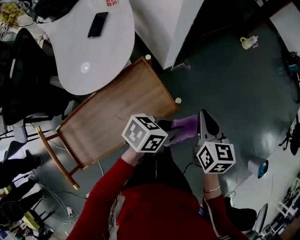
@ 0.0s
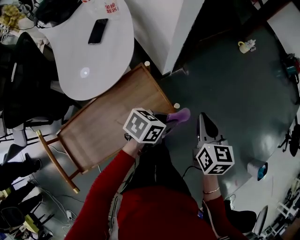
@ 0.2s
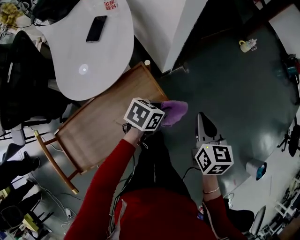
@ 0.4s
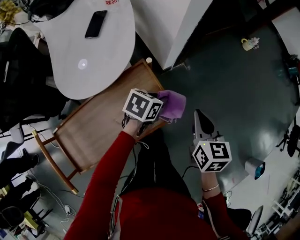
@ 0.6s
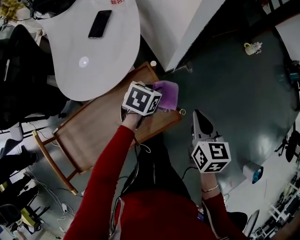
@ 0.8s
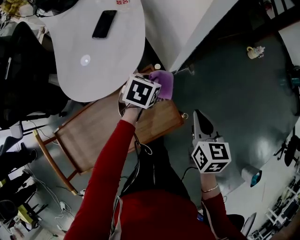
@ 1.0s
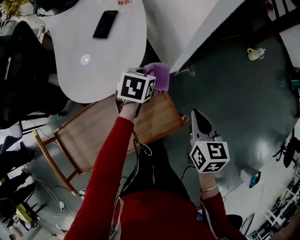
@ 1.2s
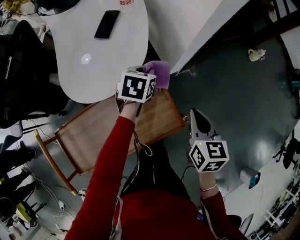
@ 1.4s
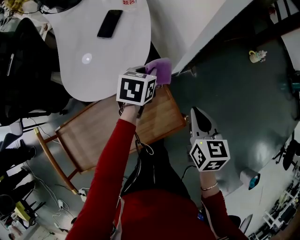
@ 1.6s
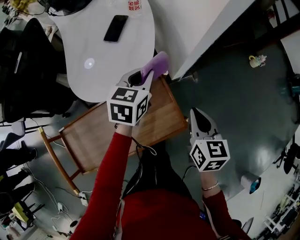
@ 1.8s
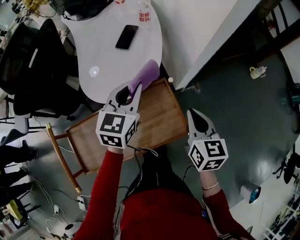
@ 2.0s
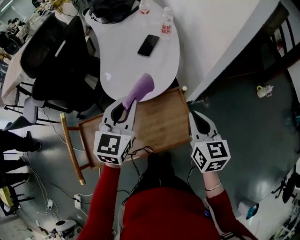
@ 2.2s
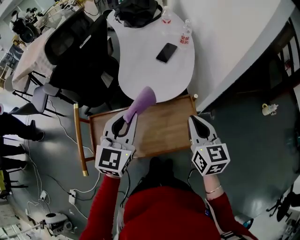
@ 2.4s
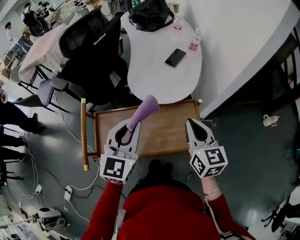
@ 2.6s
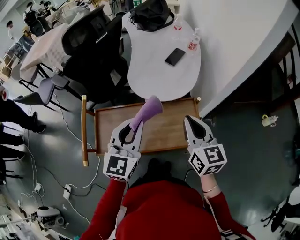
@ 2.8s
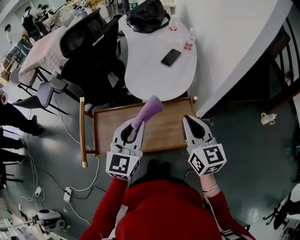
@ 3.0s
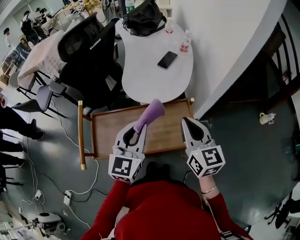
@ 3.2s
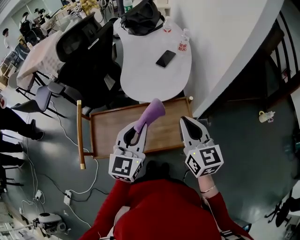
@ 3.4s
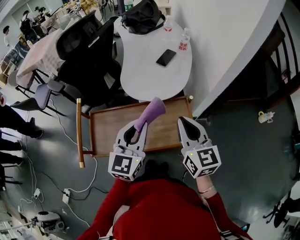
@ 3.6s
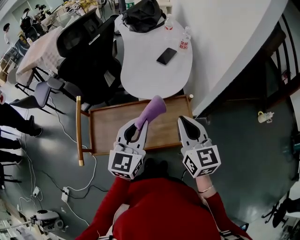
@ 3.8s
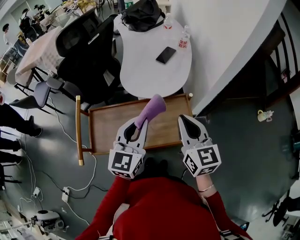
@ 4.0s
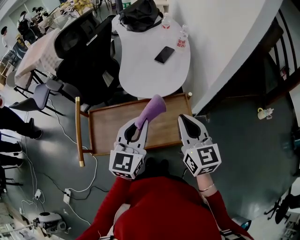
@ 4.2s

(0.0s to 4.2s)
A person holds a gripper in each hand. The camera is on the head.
0.0s - 1.4s: The right gripper moves some 10 cm. Meanwhile the left gripper changes place by about 30 cm, and swivels approximately 50 degrees.
1.4s - 2.8s: The left gripper ends up approximately 35 cm from where it was, and points its fingers about 50 degrees further upward. Meanwhile the right gripper shifts by some 20 cm, and turns by approximately 40 degrees.
2.8s - 4.2s: There are only small adjustments of the grippers.

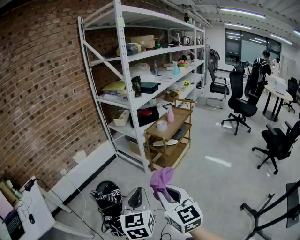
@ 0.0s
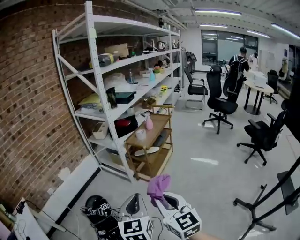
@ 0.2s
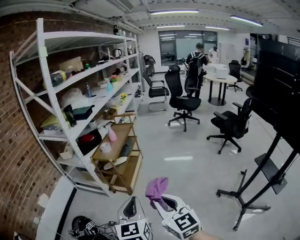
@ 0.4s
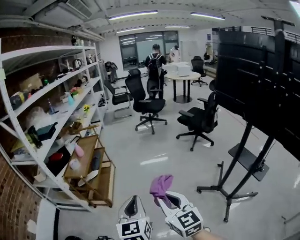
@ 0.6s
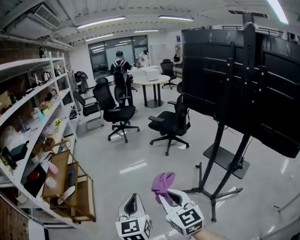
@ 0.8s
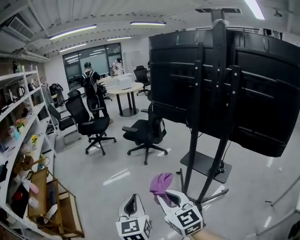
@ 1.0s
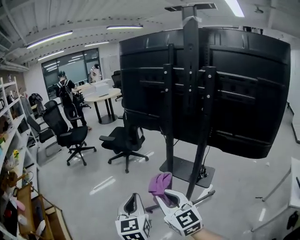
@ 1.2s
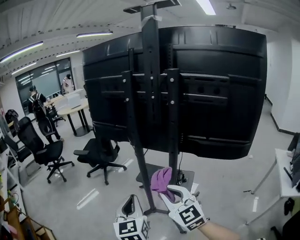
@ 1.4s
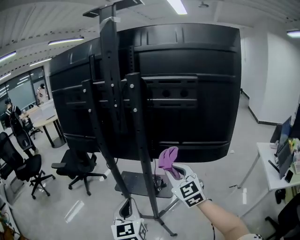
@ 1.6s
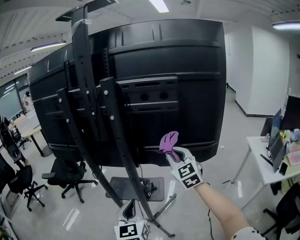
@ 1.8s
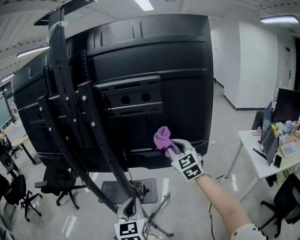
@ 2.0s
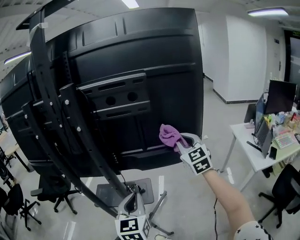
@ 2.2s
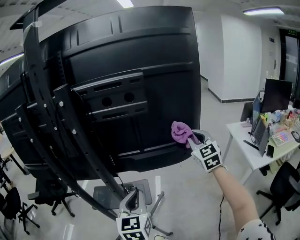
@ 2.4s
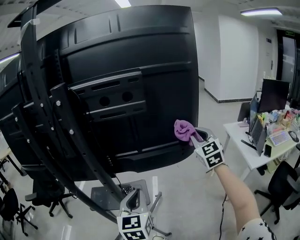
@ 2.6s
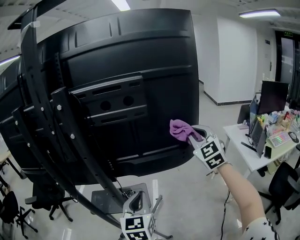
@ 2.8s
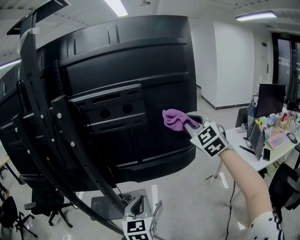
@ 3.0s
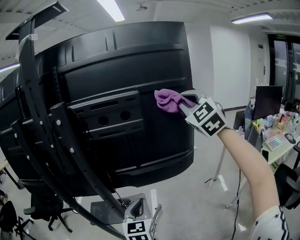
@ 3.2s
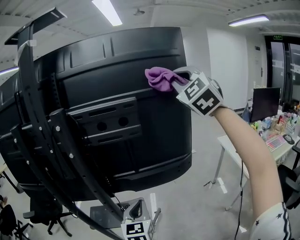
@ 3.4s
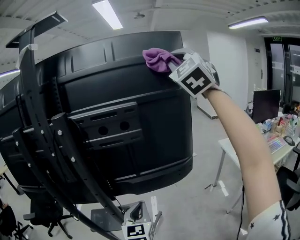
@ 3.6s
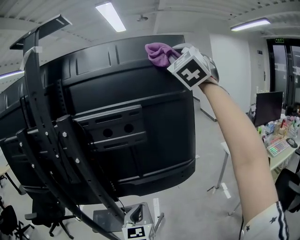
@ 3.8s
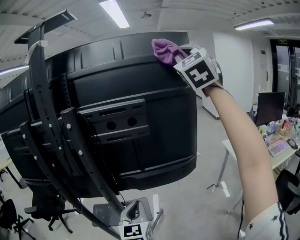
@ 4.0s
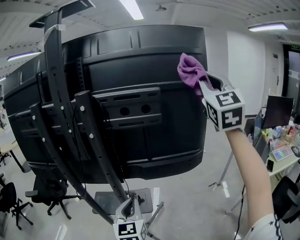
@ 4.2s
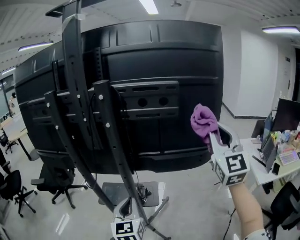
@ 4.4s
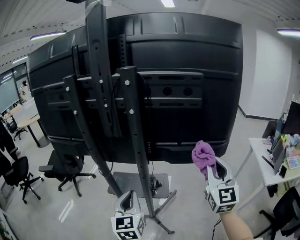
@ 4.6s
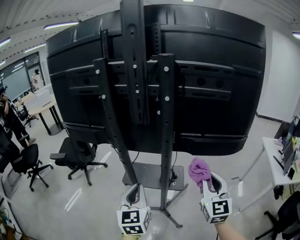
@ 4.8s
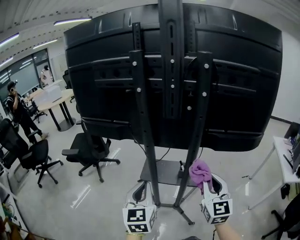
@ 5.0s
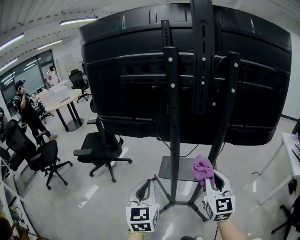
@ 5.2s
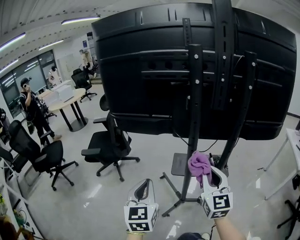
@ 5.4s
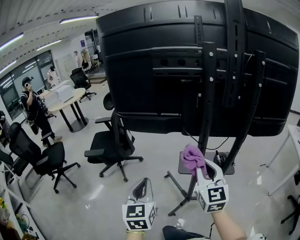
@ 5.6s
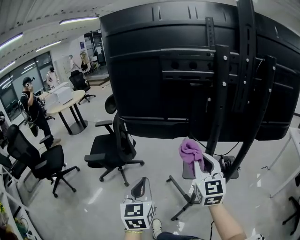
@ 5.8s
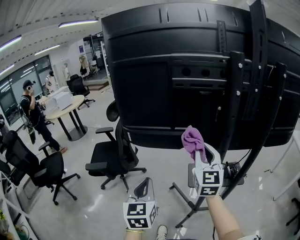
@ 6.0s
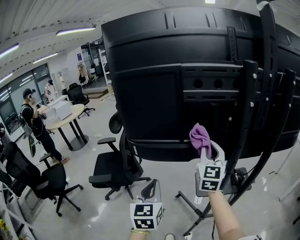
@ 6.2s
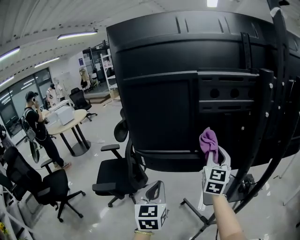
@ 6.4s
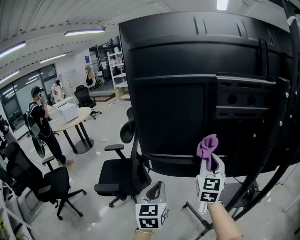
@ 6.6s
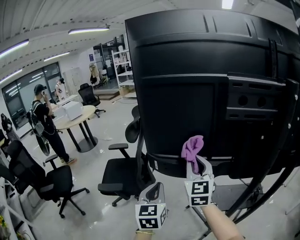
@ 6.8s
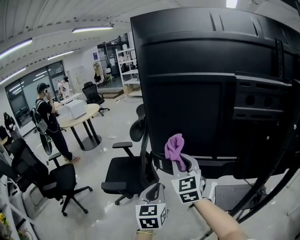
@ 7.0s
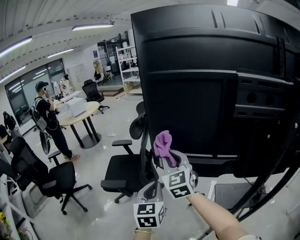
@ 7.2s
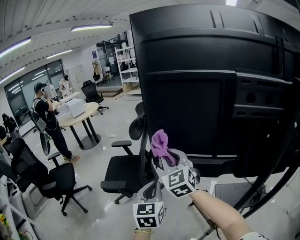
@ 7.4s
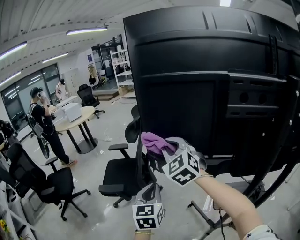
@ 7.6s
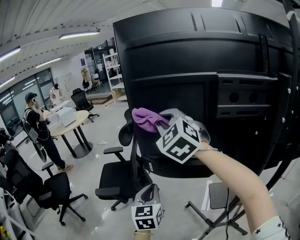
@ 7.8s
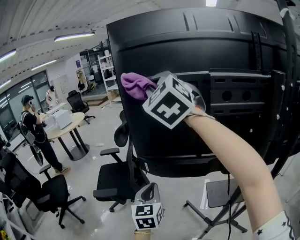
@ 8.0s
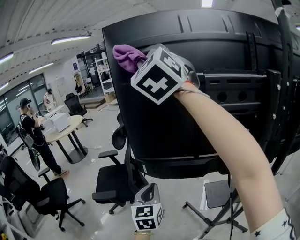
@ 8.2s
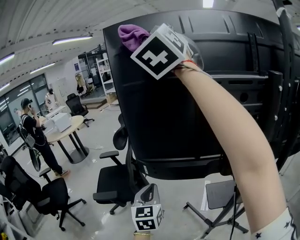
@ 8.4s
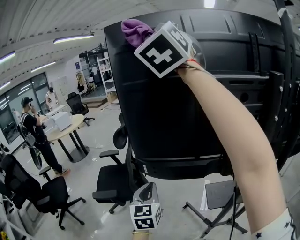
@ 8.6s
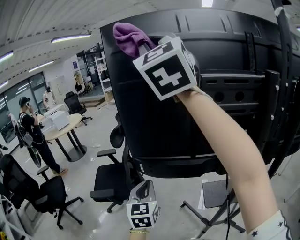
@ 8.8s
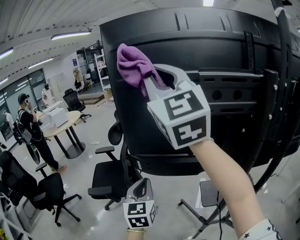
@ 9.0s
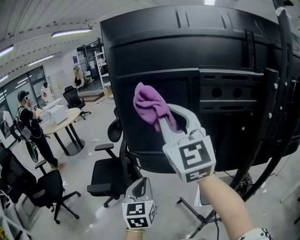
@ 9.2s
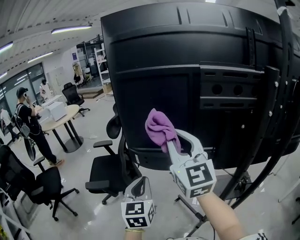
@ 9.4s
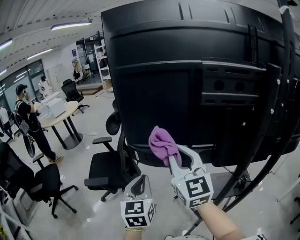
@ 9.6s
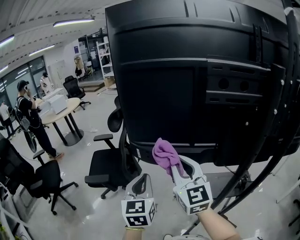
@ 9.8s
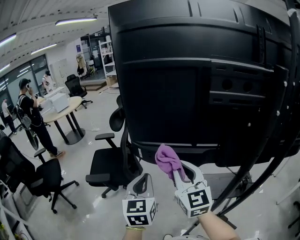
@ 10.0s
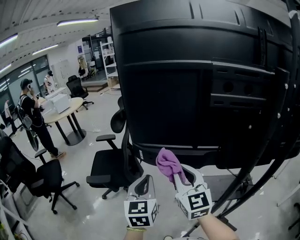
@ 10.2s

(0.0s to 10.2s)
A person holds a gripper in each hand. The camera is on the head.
0.0s - 1.4s: The pair of grippers is taken approximately 90 cm. The right gripper swivels roughly 80 degrees, while the left gripper turns by roughly 80 degrees.
1.4s - 3.0s: The left gripper changes place by roughly 35 cm, and changes its angle by approximately 40 degrees; the right gripper ends up about 50 cm from where it was, and changes its angle by about 50 degrees.
3.0s - 4.4s: The left gripper heads to the left and backward, covering approximately 15 cm. The right gripper goes about 10 cm backward, moves about 30 cm upward and comes back, and turns by some 30 degrees.
4.4s - 5.8s: Both grippers are carried to the left, roughly 60 cm. The right gripper swivels some 20 degrees.
5.8s - 7.2s: The right gripper goes approximately 40 cm to the left and forward. The left gripper travels forward and to the left by some 25 cm.
7.2s - 8.8s: The left gripper ends up about 5 cm from where it was; the right gripper is displaced upward by approximately 40 cm, and swivels some 30 degrees.
8.8s - 10.2s: The right gripper travels downward by about 40 cm, and turns by approximately 30 degrees.

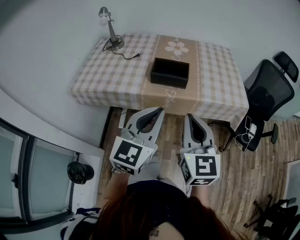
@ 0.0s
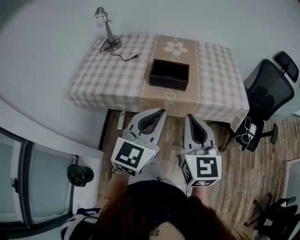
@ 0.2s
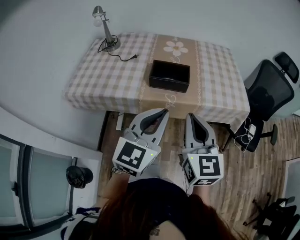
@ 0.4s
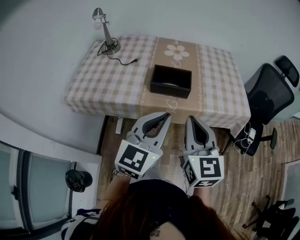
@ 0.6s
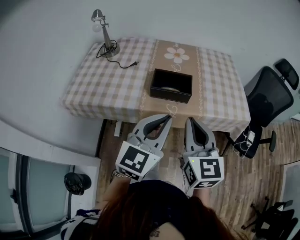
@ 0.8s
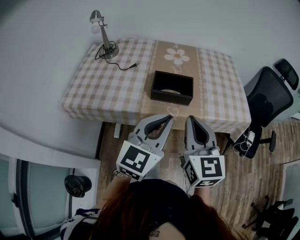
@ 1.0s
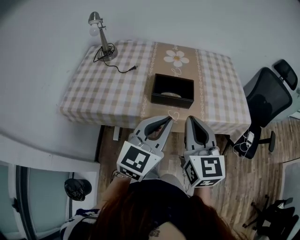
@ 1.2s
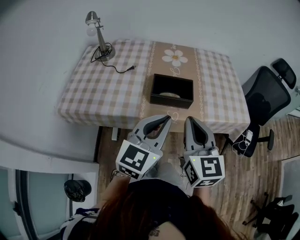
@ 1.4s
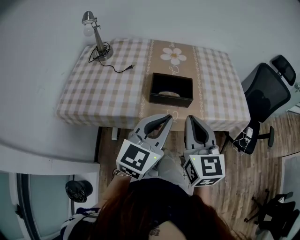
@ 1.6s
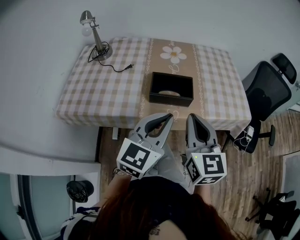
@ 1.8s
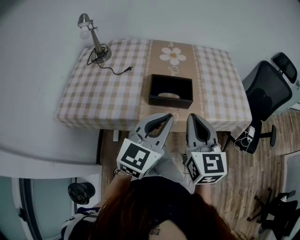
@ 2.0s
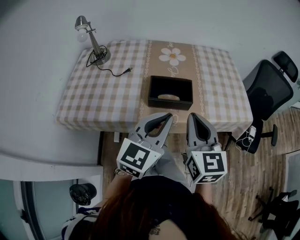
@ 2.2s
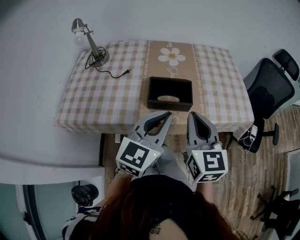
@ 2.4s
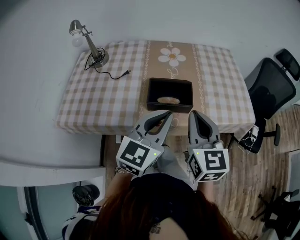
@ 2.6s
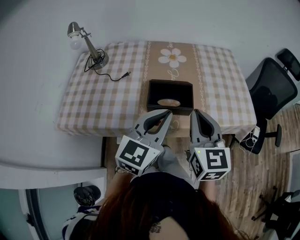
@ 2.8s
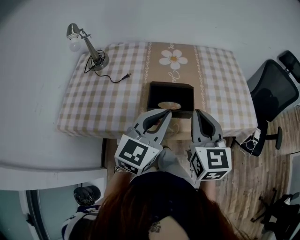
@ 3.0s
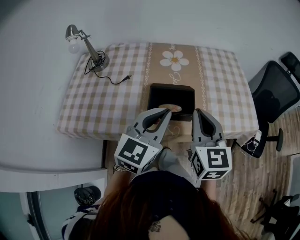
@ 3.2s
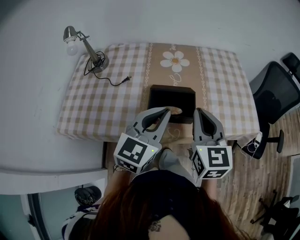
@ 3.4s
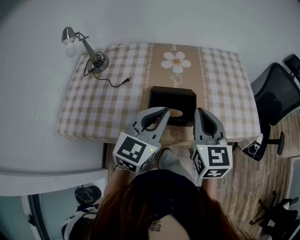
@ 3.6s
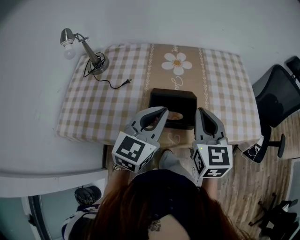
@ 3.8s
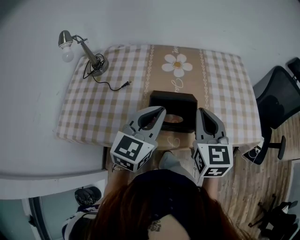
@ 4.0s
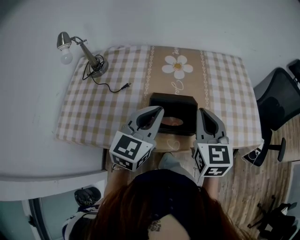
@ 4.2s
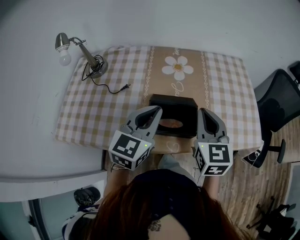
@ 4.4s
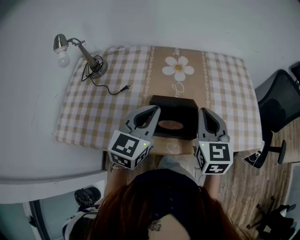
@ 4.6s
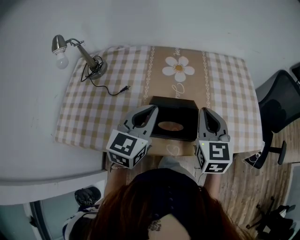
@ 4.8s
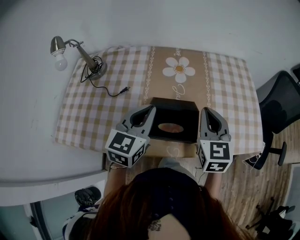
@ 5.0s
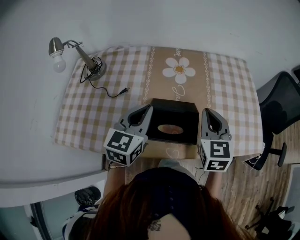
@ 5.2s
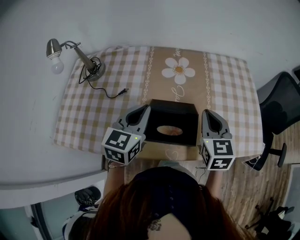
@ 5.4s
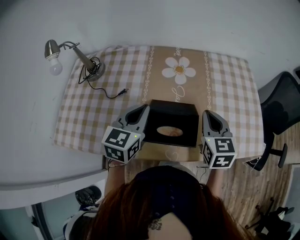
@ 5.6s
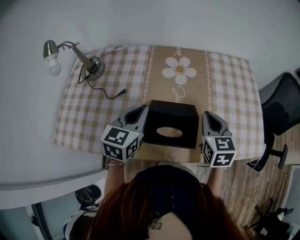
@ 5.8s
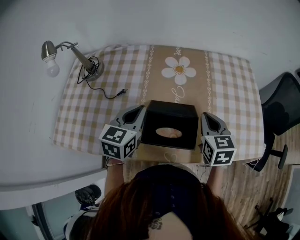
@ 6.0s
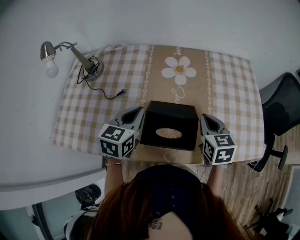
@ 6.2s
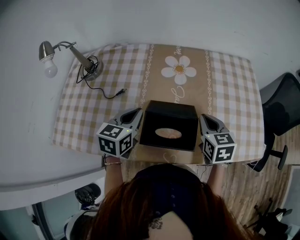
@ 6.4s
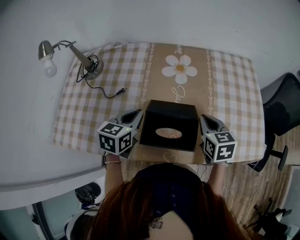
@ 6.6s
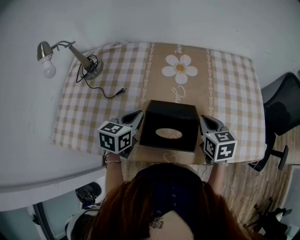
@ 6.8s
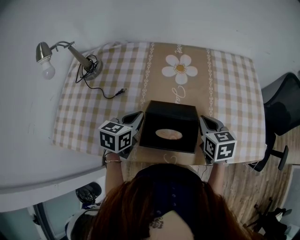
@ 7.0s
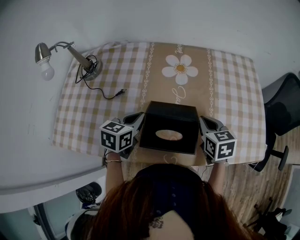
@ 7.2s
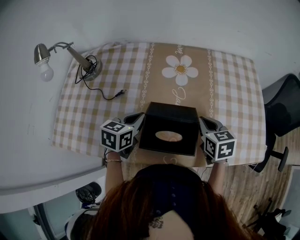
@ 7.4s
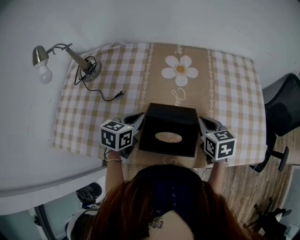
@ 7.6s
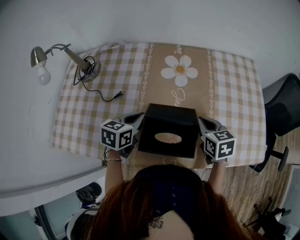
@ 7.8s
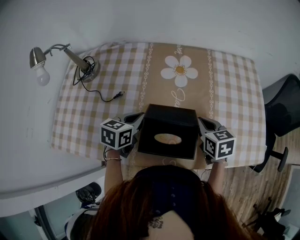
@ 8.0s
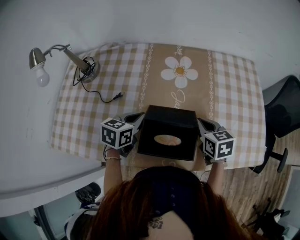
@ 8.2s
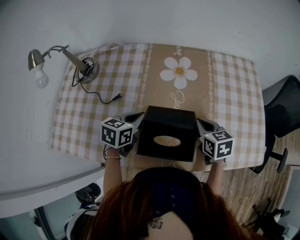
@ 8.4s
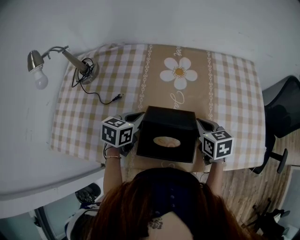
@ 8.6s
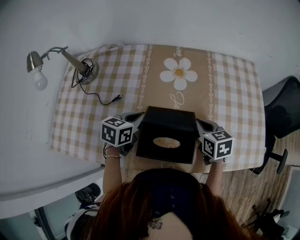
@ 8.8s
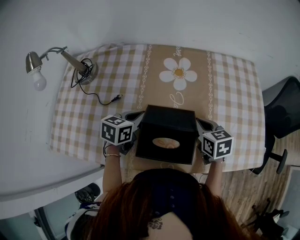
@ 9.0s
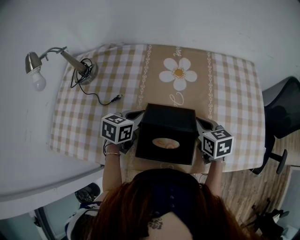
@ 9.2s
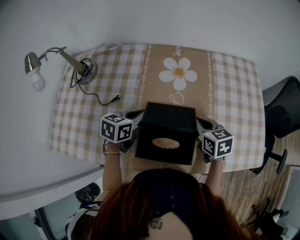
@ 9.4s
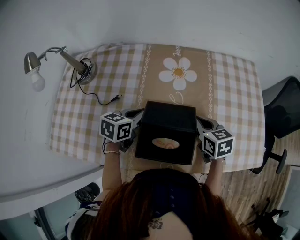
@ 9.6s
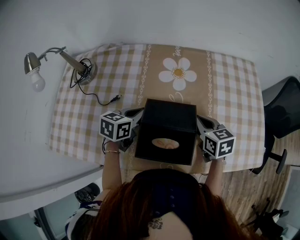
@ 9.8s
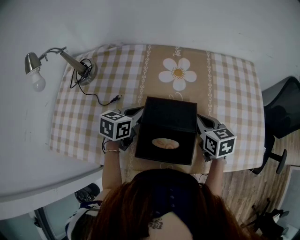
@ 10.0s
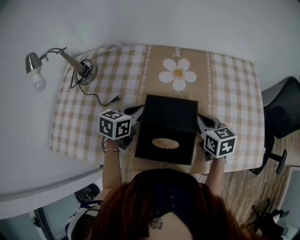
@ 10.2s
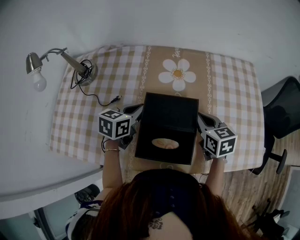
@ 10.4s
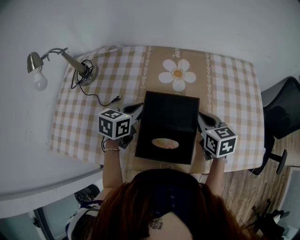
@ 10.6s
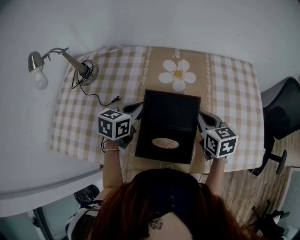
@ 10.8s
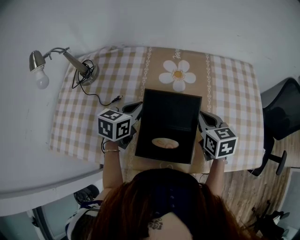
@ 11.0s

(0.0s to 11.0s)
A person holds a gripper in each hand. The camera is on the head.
0.0s - 1.6s: The left gripper moves forward, about 10 cm. The right gripper shifts some 15 cm forward and to the left.
1.6s - 3.2s: Both grippers move forward, approximately 10 cm.
3.2s - 4.8s: The right gripper shifts some 10 cm forward, while the left gripper is displaced forward and to the left by about 15 cm.
4.8s - 6.2s: The left gripper is displaced downward and to the left by about 10 cm, while the right gripper heads downward, covering some 10 cm.
6.2s - 7.8s: Both grippers move downward, roughly 5 cm.
7.8s - 9.4s: The grippers make only small movements.
9.4s - 11.0s: The left gripper moves roughly 5 cm.
